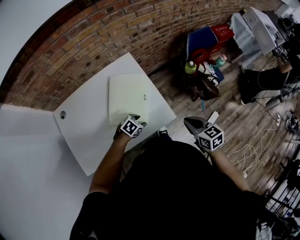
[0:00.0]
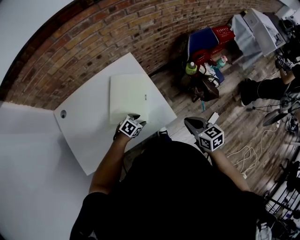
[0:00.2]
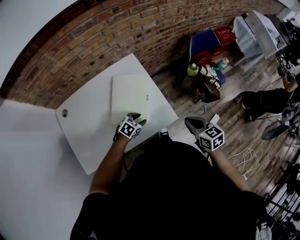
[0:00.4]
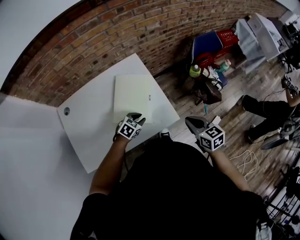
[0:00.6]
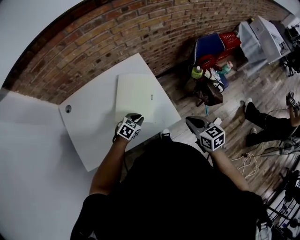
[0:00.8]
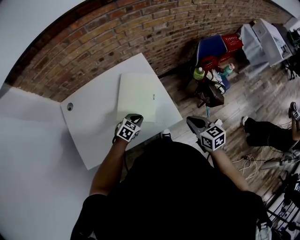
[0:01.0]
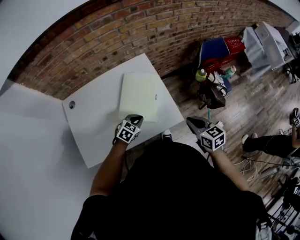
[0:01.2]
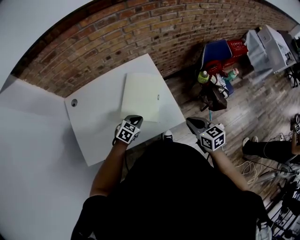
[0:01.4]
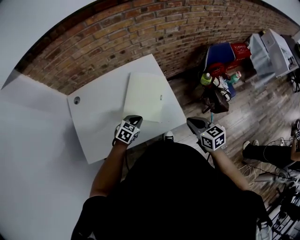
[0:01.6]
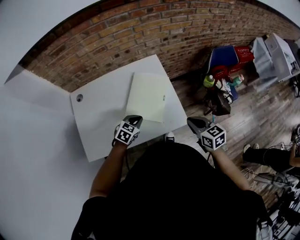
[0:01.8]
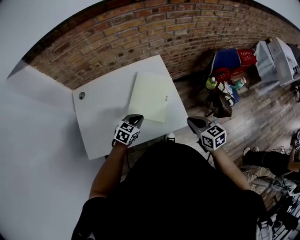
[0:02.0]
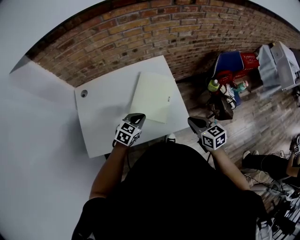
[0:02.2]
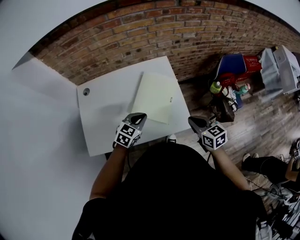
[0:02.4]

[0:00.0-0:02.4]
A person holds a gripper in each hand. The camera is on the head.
0:00.0 to 0:01.2: The left gripper goes about 10 cm upward and to the left, swivels roughly 20 degrees, and closes its fingers.
0:01.2 to 0:02.4: The right gripper moves to the left, approximately 5 cm, while the left gripper goes some 10 cm upward.

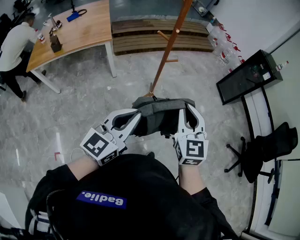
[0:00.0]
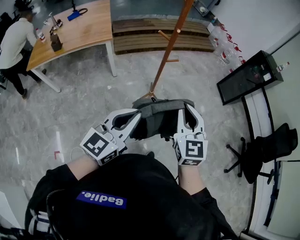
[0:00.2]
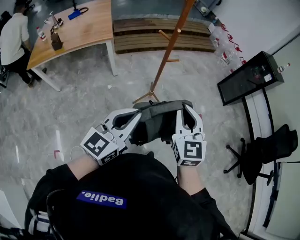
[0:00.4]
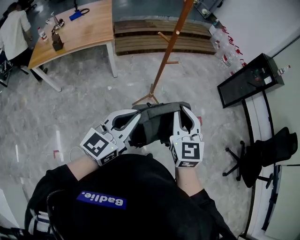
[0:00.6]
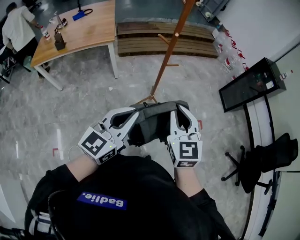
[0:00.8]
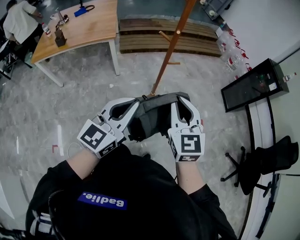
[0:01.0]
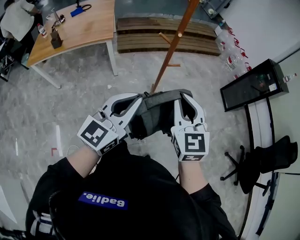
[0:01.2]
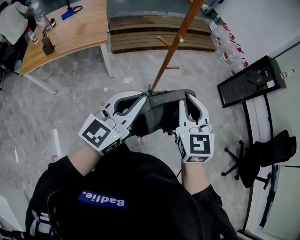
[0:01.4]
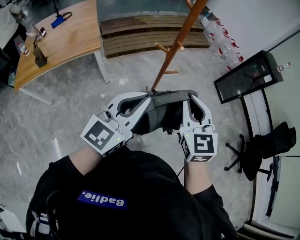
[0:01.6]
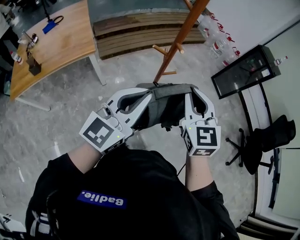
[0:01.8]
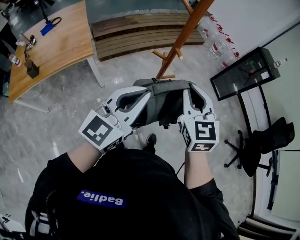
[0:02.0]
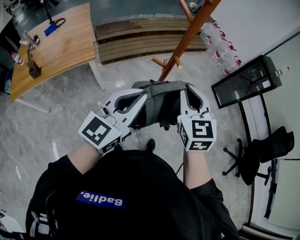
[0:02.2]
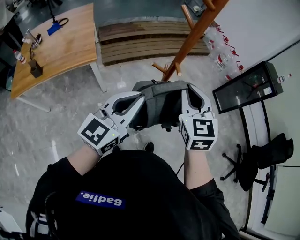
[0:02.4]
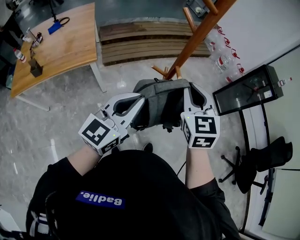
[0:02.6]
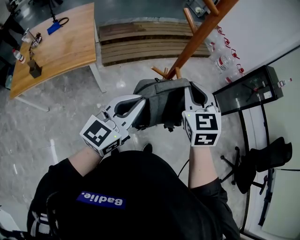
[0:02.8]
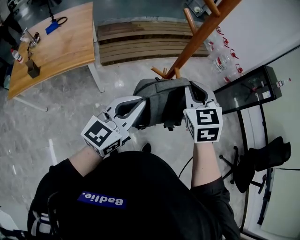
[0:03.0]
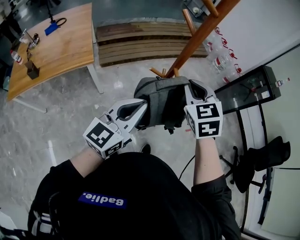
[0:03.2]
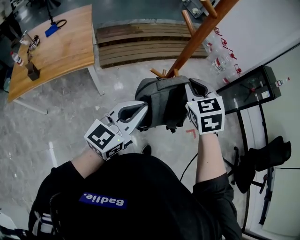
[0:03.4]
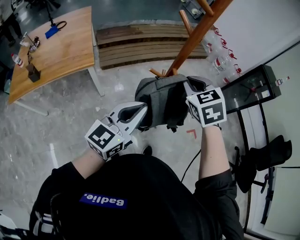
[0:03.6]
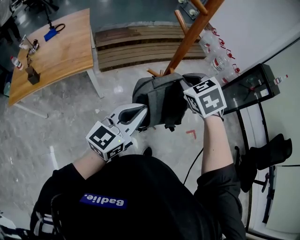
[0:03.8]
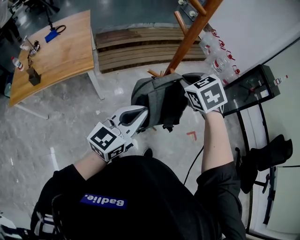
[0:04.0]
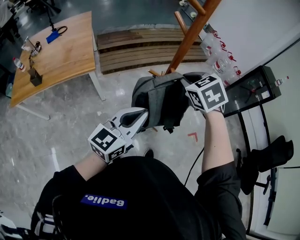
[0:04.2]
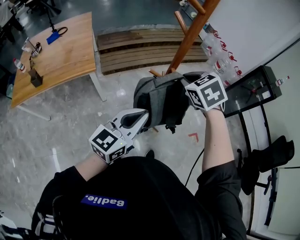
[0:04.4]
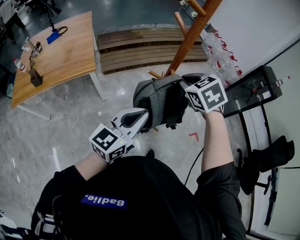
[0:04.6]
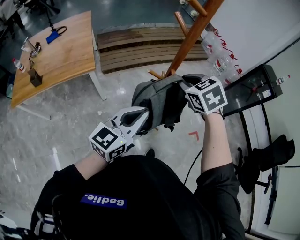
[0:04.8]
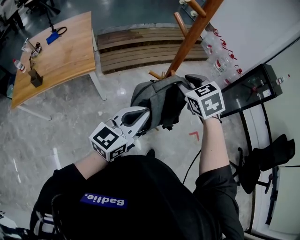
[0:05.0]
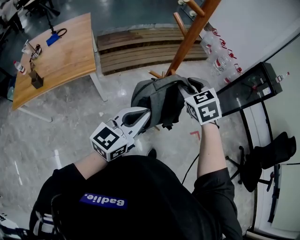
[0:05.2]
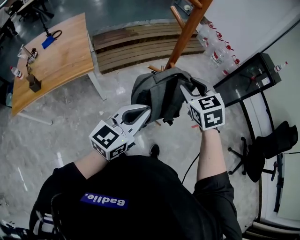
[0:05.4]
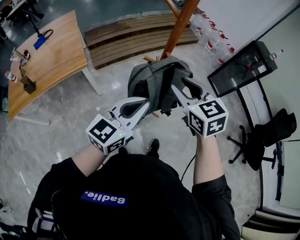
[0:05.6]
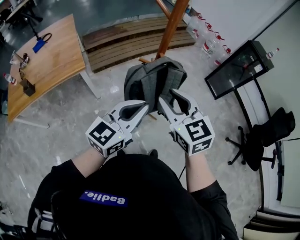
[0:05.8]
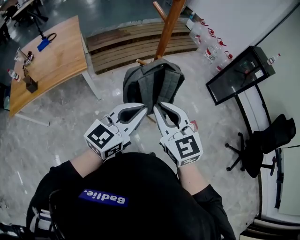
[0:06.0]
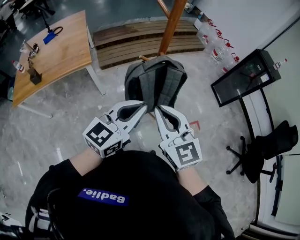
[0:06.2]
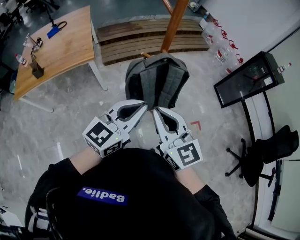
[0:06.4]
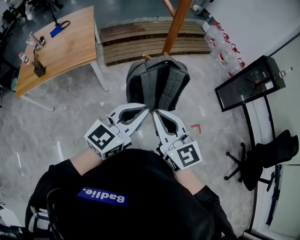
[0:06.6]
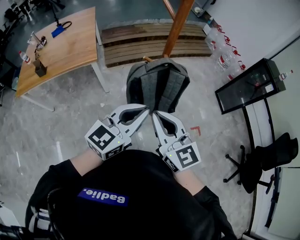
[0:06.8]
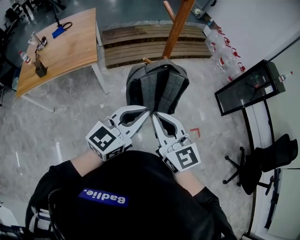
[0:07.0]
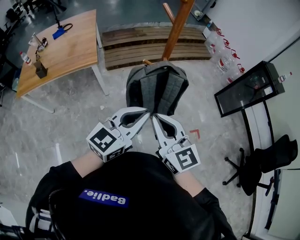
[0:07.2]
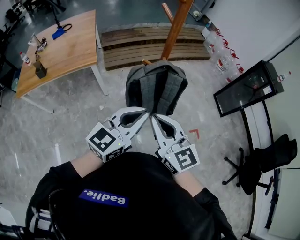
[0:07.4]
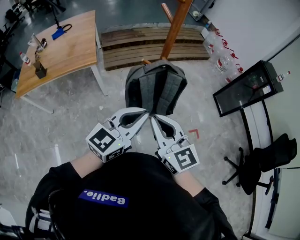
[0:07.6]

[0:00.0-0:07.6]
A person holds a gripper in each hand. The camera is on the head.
0:00.0 to 0:01.6: The right gripper goes roughly 15 cm forward and to the left, while the left gripper heads forward, covering some 20 cm.
0:01.6 to 0:03.0: The grippers both shift forward by about 15 cm.
0:03.0 to 0:04.6: The right gripper moves approximately 5 cm, and swivels roughly 20 degrees.
0:04.6 to 0:06.0: The left gripper is displaced backward by some 5 cm; the right gripper goes approximately 20 cm backward, tips its fingers upward by about 40 degrees, and opens and closes again.
0:06.0 to 0:07.6: The grippers stay close to where they were, moving slightly.

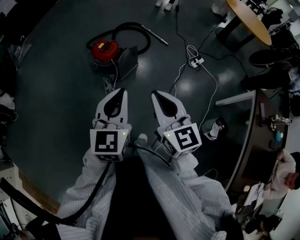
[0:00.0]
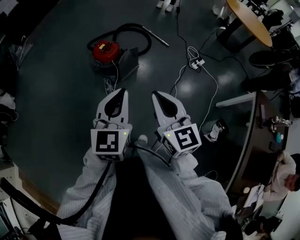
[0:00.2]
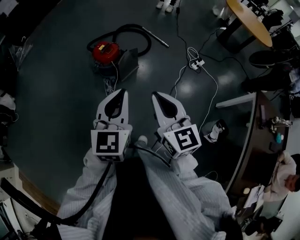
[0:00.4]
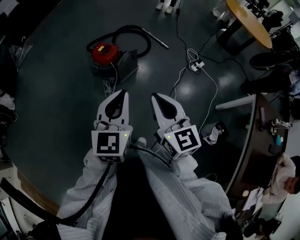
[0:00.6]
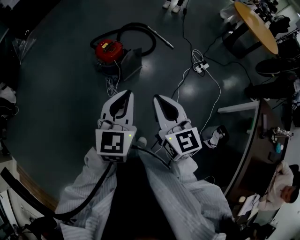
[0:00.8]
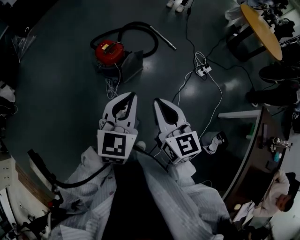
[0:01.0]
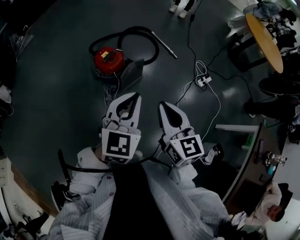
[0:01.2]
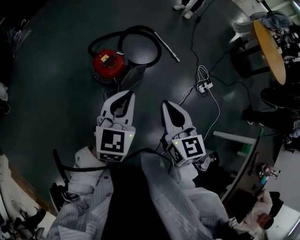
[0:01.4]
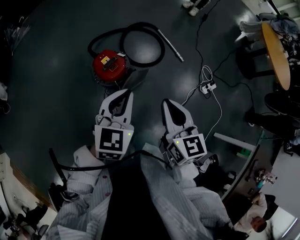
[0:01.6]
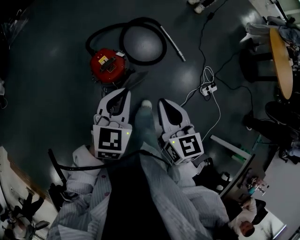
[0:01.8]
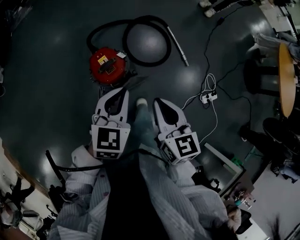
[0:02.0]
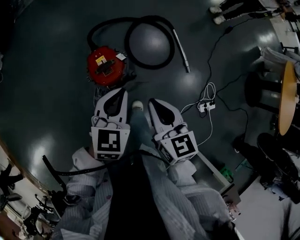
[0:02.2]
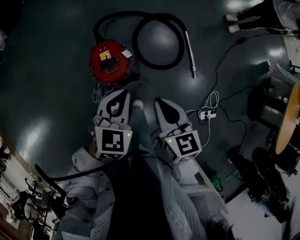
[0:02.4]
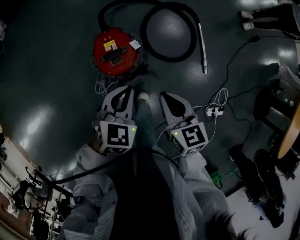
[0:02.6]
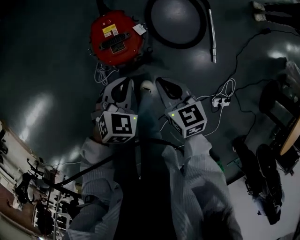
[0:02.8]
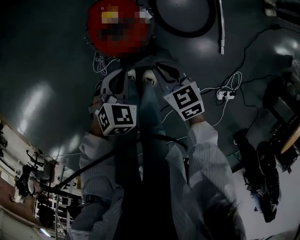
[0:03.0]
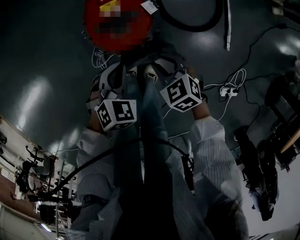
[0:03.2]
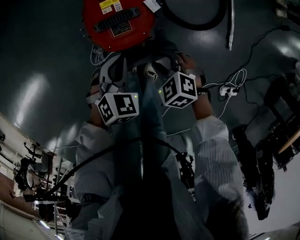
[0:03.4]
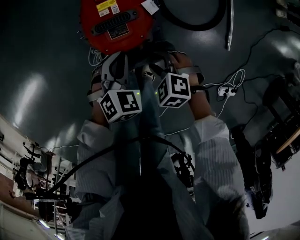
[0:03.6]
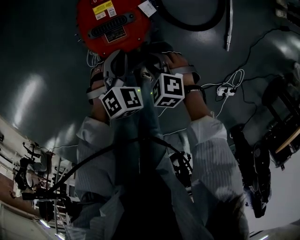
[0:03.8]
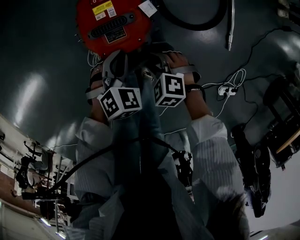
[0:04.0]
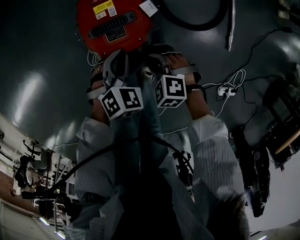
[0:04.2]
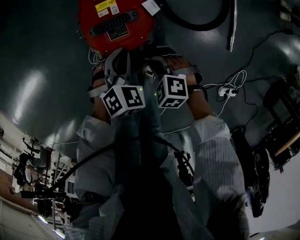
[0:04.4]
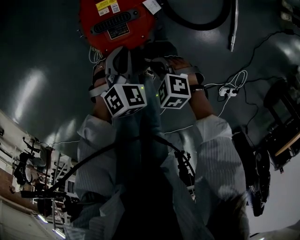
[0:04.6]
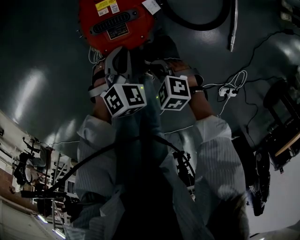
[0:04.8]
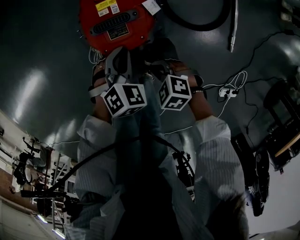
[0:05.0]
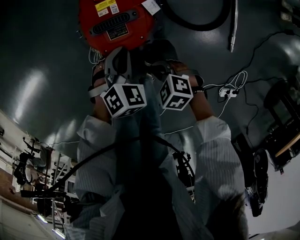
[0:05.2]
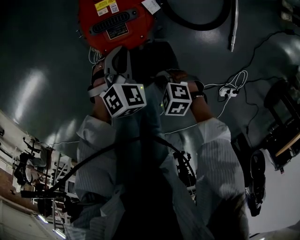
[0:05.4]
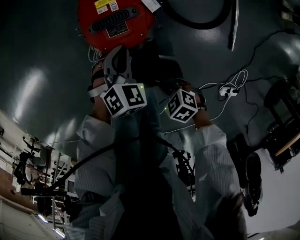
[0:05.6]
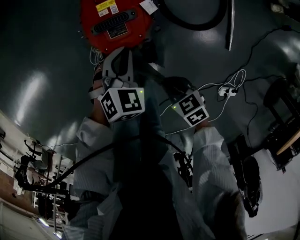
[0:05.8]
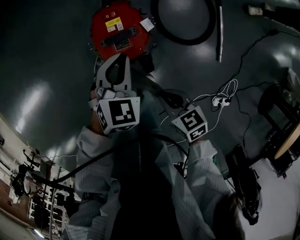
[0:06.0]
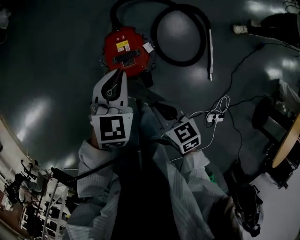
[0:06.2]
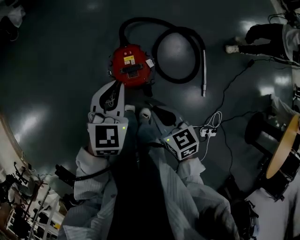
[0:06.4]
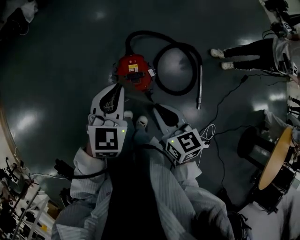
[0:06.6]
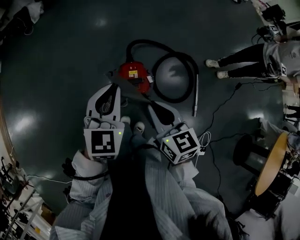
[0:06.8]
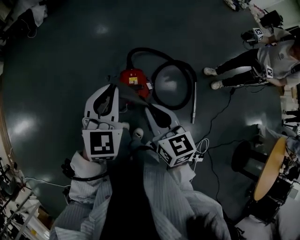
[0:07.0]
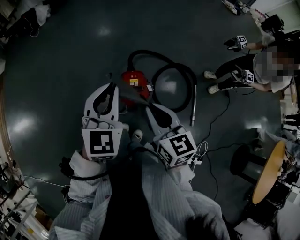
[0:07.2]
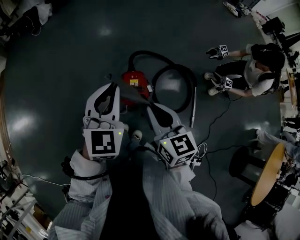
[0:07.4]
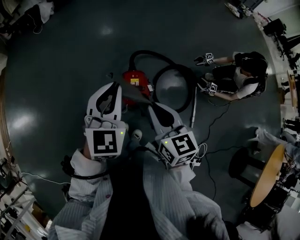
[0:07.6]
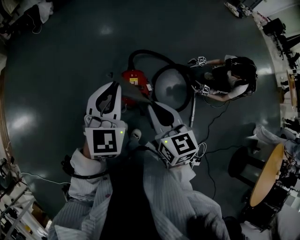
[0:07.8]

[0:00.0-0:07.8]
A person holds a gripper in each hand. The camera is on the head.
0:00.0 to 0:01.6: The grippers both shift forward by some 40 cm.
0:01.6 to 0:03.2: Both grippers move downward, roughly 50 cm. The right gripper tips its fingers downward by about 40 degrees. Meanwhile the left gripper tilts its fingers roughly 30 degrees downward.
0:03.2 to 0:04.6: Both grippers travel together downward, some 5 cm. The right gripper changes its angle by about 30 degrees, and opens and closes again.
0:04.6 to 0:06.2: Both grippers travel together upward, roughly 30 cm. The right gripper rotates around the line of its fingers by approximately 40 degrees, clockwise from behind. Meanwhile the left gripper turns by approximately 40 degrees.
0:06.2 to 0:07.8: The left gripper swings up and down, roughly 30 cm each way, with 2 reversals, and swivels roughly 20 degrees. Meanwhile the right gripper moves up and down over some 30 cm, changing direction 2 times, and swivels approximately 30 degrees.

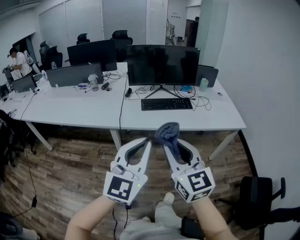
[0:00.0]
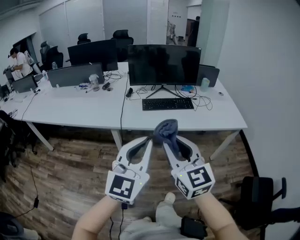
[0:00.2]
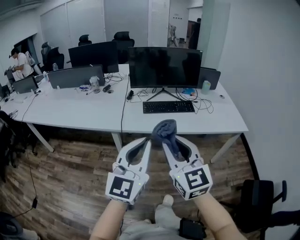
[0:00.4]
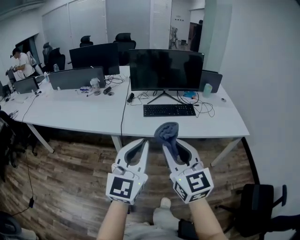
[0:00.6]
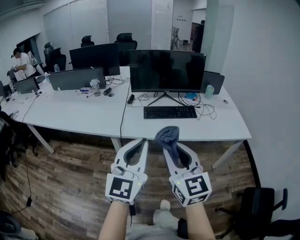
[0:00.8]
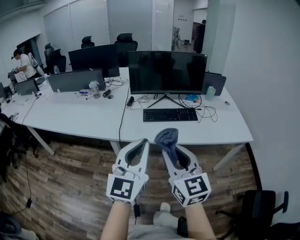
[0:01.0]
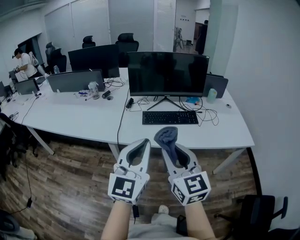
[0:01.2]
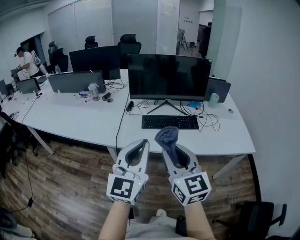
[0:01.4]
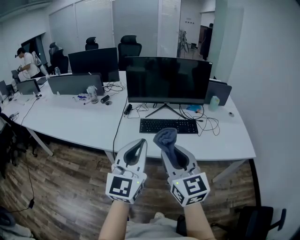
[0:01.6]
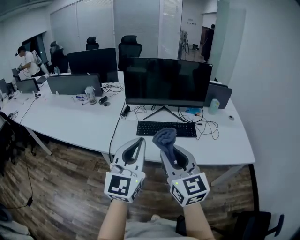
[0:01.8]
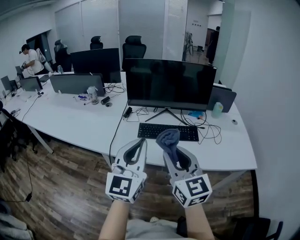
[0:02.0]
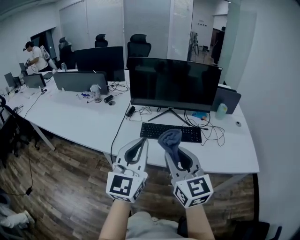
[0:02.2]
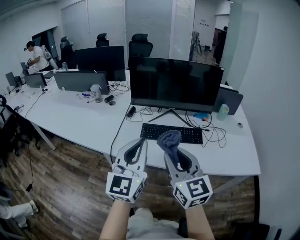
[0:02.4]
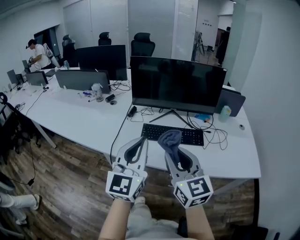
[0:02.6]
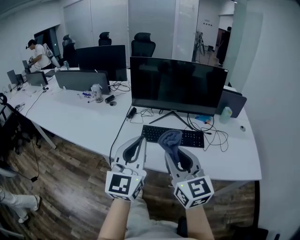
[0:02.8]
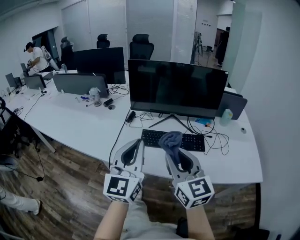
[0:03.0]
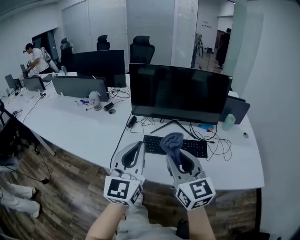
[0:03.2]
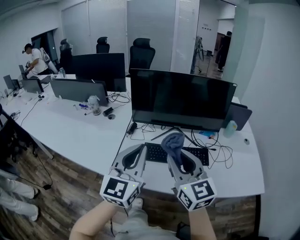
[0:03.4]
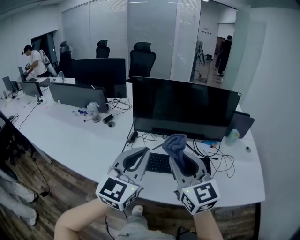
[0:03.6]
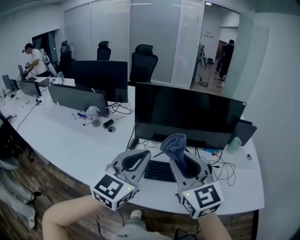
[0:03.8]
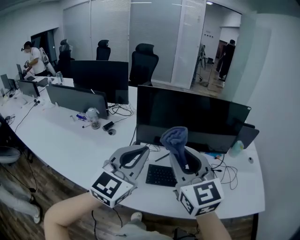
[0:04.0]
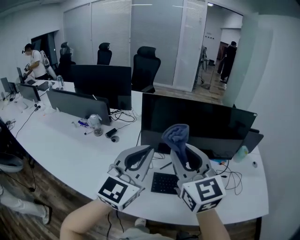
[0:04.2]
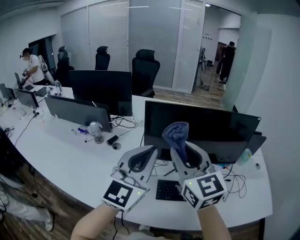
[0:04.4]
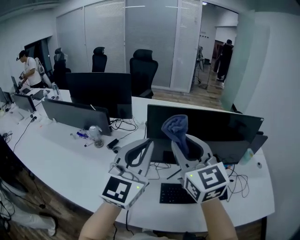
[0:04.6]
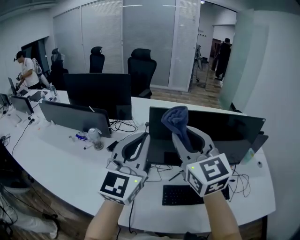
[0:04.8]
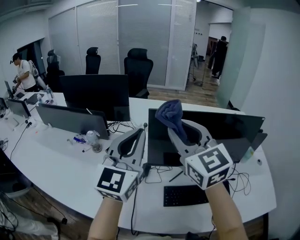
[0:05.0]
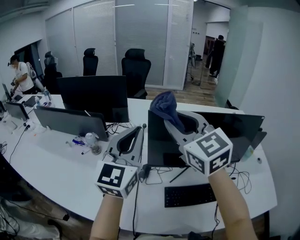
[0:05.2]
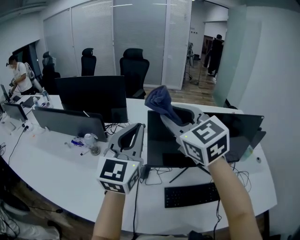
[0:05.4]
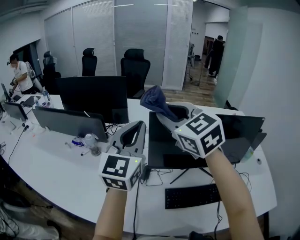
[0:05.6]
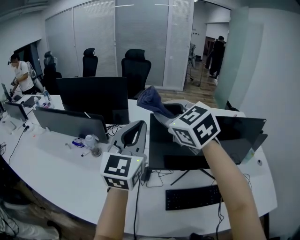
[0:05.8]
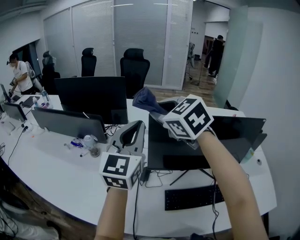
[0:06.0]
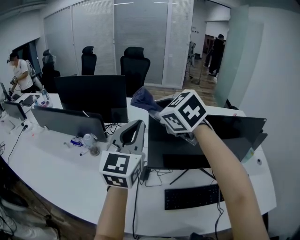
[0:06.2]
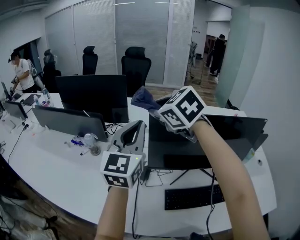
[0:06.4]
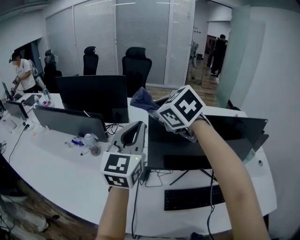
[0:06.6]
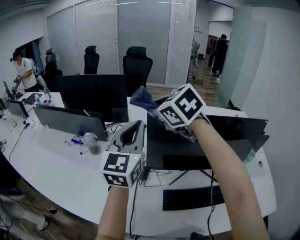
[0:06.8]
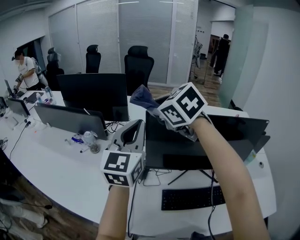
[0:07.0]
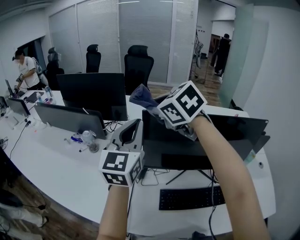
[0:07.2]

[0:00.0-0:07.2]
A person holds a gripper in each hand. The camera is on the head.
0:00.0 to 0:01.4: Both grippers travel together forward, approximately 15 cm.
0:01.4 to 0:02.8: The left gripper heads forward, covering some 15 cm. Meanwhile the right gripper travels forward and to the right by roughly 15 cm.
0:02.8 to 0:04.4: Both grippers travel together forward, some 30 cm.
0:04.4 to 0:05.8: Both grippers travel together forward and to the left, approximately 20 cm. The right gripper rotates roughly 30 degrees.
0:05.8 to 0:07.2: There are only small adjustments of the grippers.
